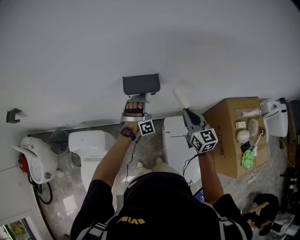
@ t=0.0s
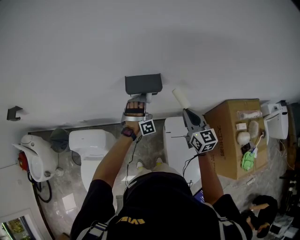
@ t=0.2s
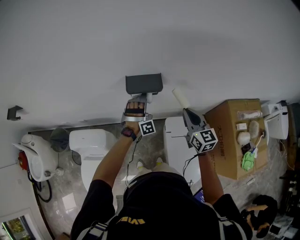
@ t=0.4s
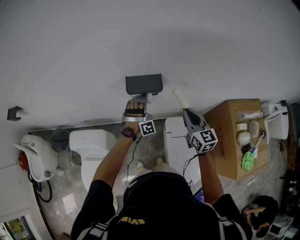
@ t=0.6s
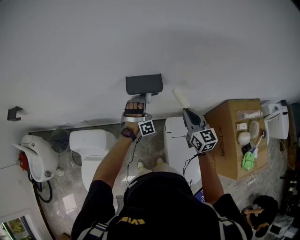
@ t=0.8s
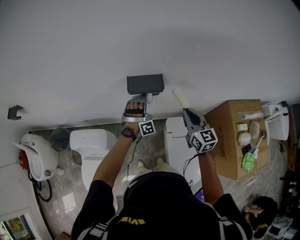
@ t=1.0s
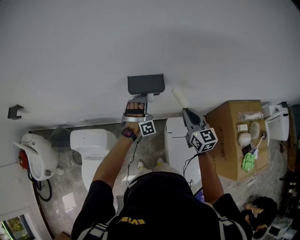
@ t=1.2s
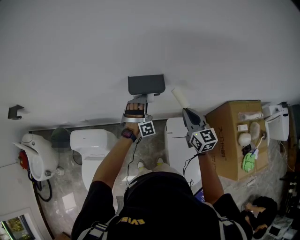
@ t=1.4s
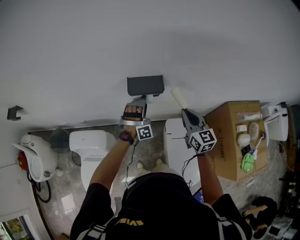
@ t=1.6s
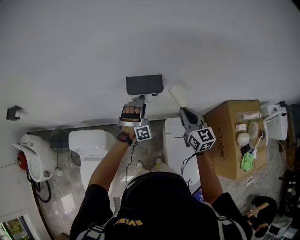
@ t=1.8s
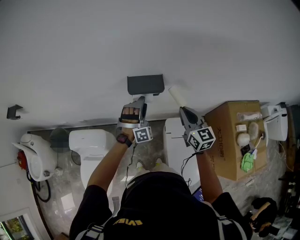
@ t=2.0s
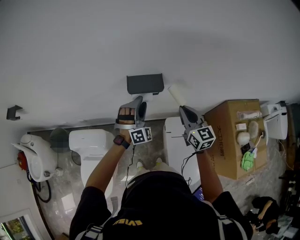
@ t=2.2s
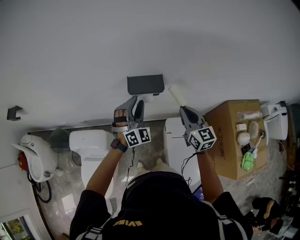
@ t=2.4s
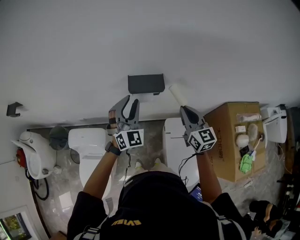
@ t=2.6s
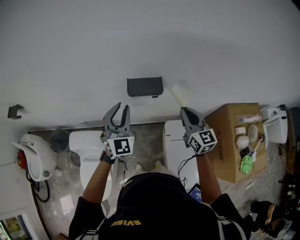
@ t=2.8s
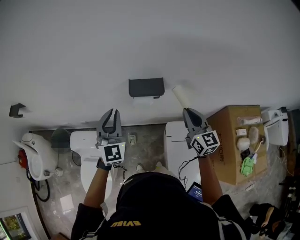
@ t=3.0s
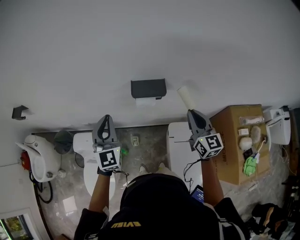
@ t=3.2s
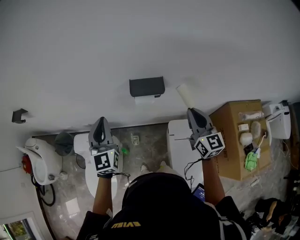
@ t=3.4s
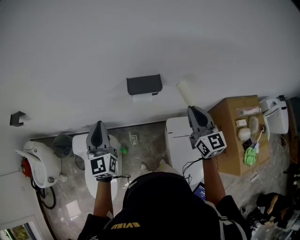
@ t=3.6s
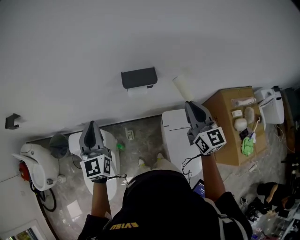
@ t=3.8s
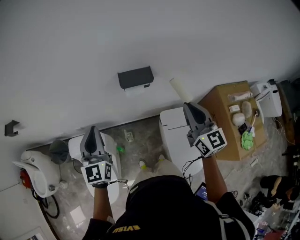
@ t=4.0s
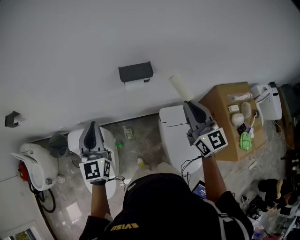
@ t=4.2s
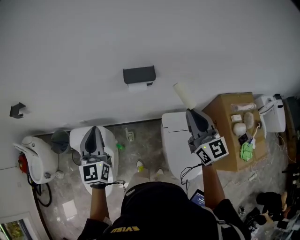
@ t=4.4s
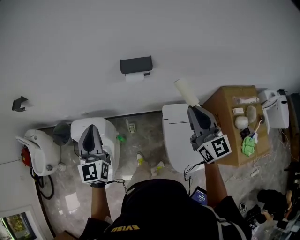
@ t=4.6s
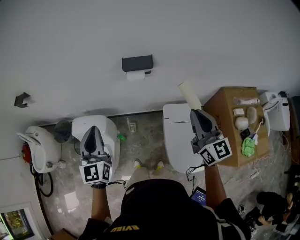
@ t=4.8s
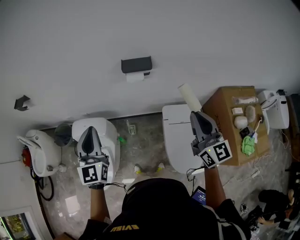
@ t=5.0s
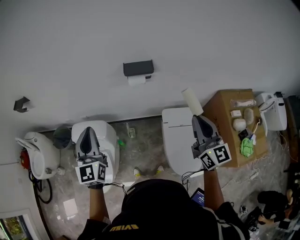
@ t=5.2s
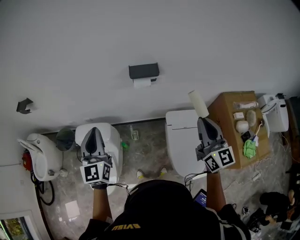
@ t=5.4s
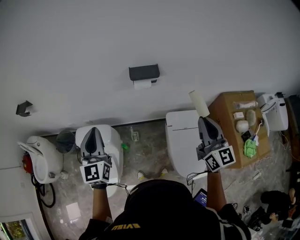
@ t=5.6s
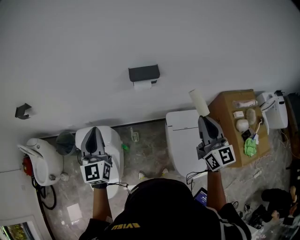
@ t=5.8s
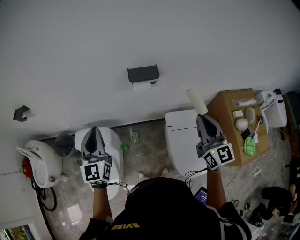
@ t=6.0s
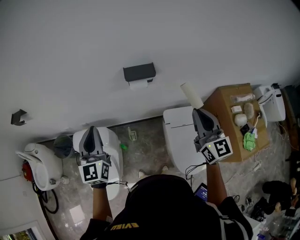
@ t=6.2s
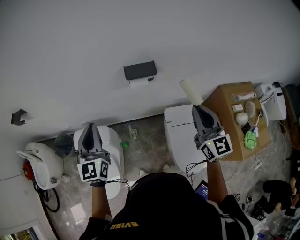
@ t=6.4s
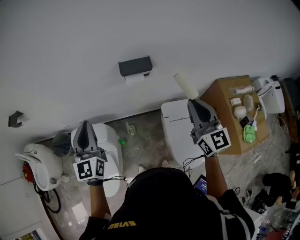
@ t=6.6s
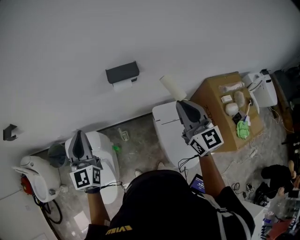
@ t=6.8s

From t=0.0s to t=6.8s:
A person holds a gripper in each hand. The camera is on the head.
From t=0.0s to t=1.4s: The grippers stay close to where they were, moving slightly.
From t=1.4s to t=2.8s: The left gripper shifts some 20 cm upward and to the left, twists about 60 degrees counterclockwise, seen from behind, and closes up.
From t=2.8s to t=4.0s: The left gripper travels to the left and backward by roughly 15 cm, and rotates roughly 30 degrees. The right gripper goes approximately 15 cm backward and upward.
From t=4.0s to t=5.4s: Both grippers travel together backward, about 10 cm.
From t=5.4s to t=6.8s: The grippers both shift forward by about 5 cm.

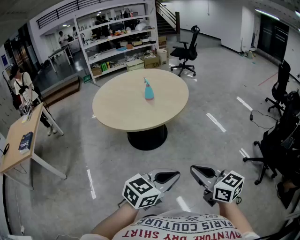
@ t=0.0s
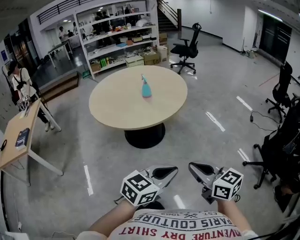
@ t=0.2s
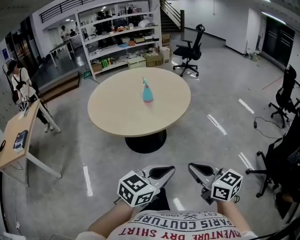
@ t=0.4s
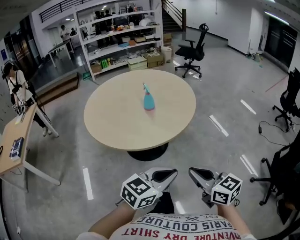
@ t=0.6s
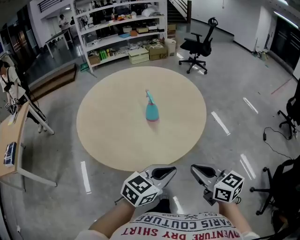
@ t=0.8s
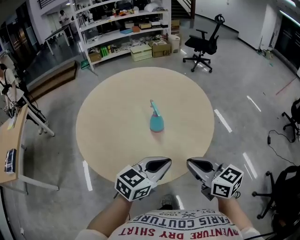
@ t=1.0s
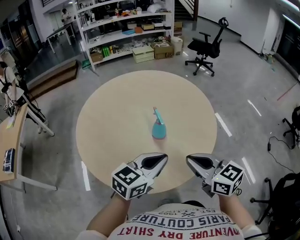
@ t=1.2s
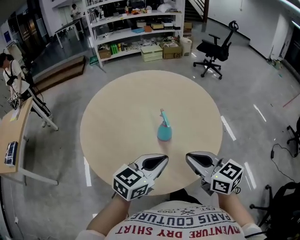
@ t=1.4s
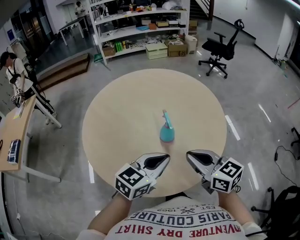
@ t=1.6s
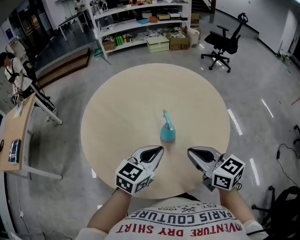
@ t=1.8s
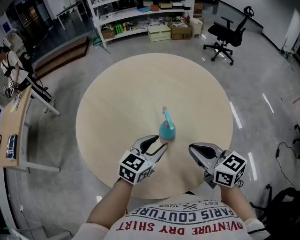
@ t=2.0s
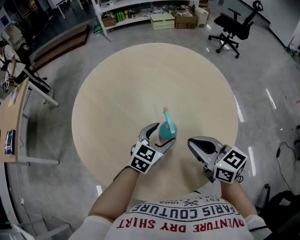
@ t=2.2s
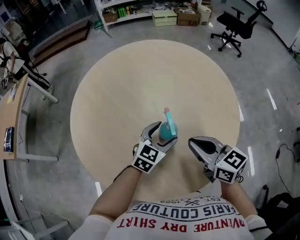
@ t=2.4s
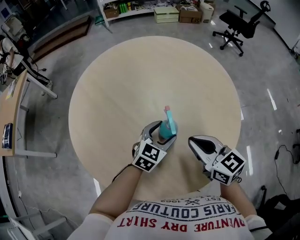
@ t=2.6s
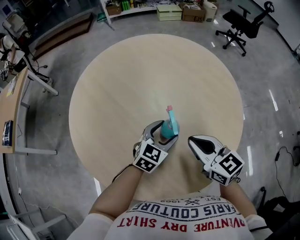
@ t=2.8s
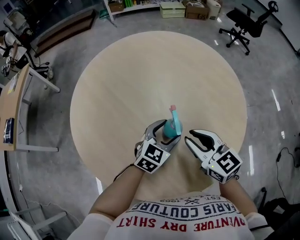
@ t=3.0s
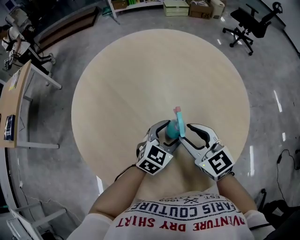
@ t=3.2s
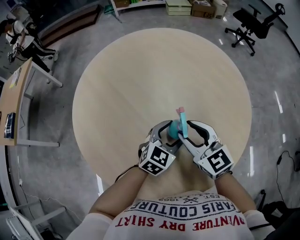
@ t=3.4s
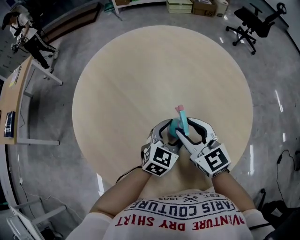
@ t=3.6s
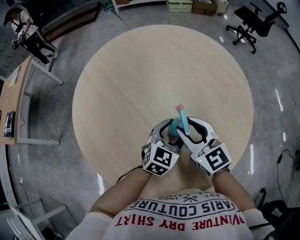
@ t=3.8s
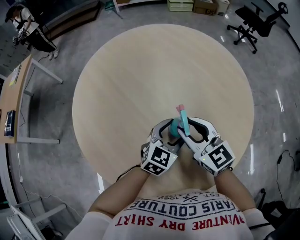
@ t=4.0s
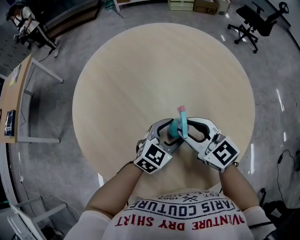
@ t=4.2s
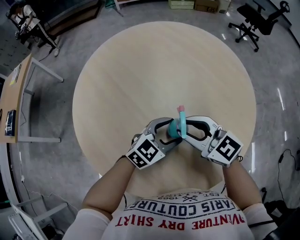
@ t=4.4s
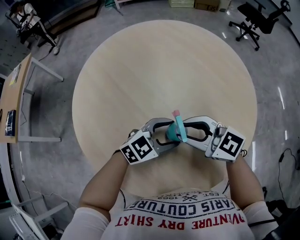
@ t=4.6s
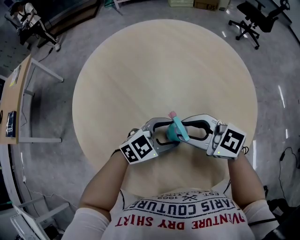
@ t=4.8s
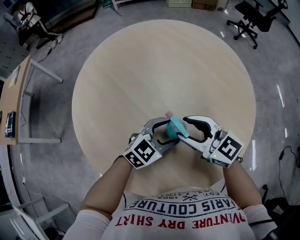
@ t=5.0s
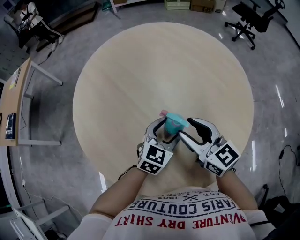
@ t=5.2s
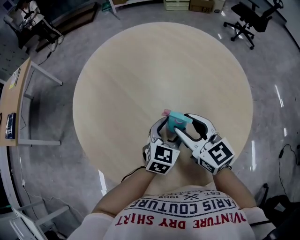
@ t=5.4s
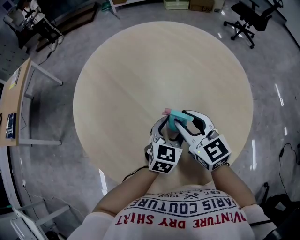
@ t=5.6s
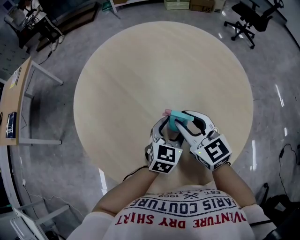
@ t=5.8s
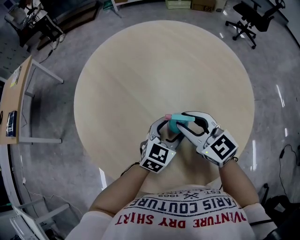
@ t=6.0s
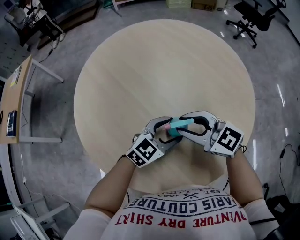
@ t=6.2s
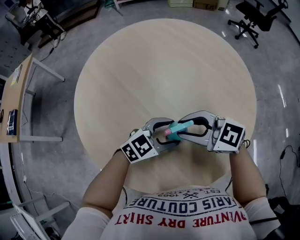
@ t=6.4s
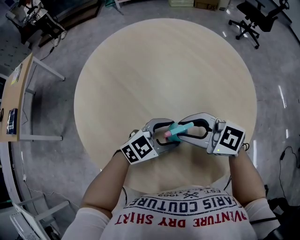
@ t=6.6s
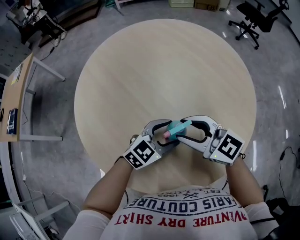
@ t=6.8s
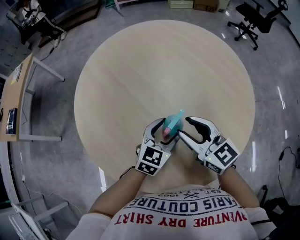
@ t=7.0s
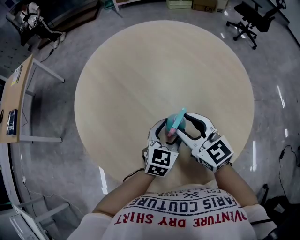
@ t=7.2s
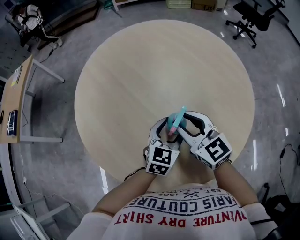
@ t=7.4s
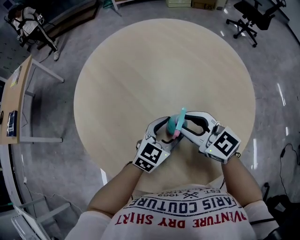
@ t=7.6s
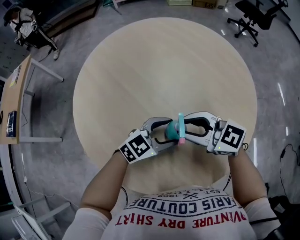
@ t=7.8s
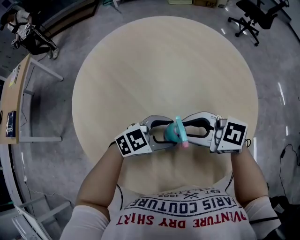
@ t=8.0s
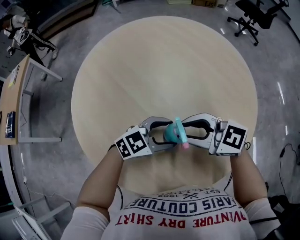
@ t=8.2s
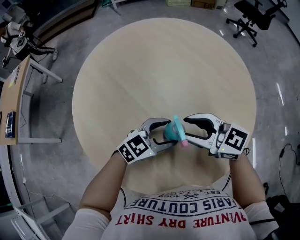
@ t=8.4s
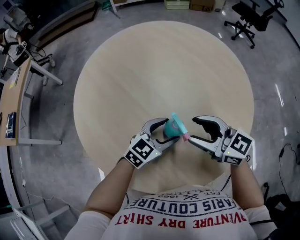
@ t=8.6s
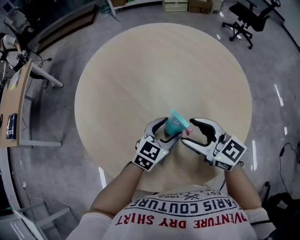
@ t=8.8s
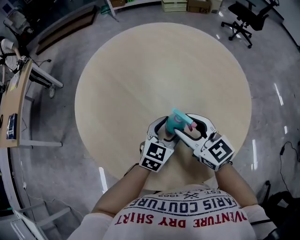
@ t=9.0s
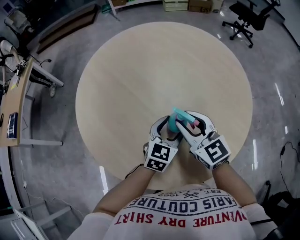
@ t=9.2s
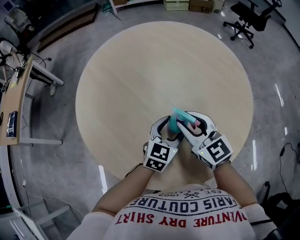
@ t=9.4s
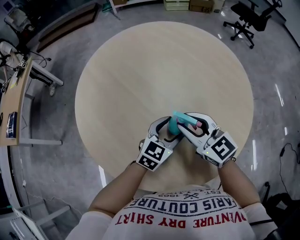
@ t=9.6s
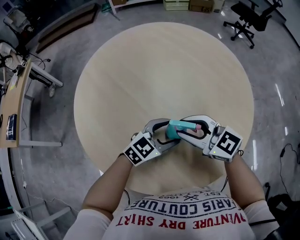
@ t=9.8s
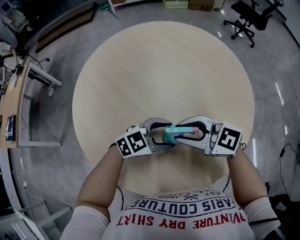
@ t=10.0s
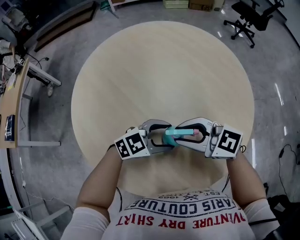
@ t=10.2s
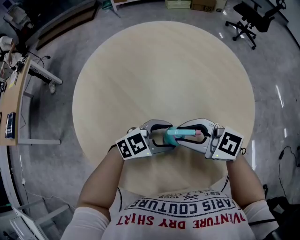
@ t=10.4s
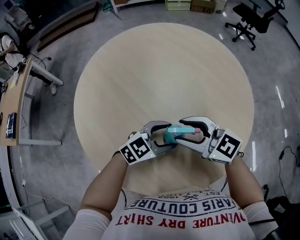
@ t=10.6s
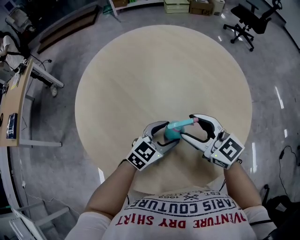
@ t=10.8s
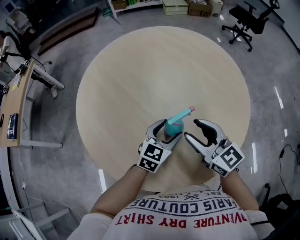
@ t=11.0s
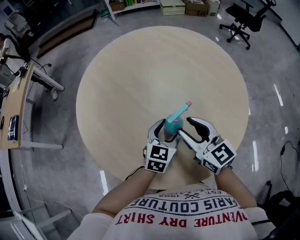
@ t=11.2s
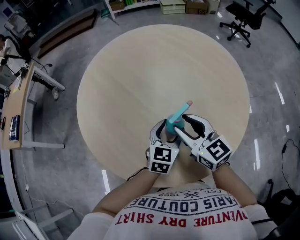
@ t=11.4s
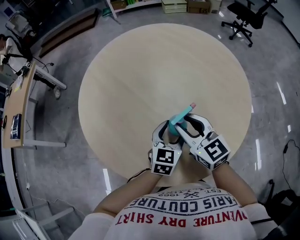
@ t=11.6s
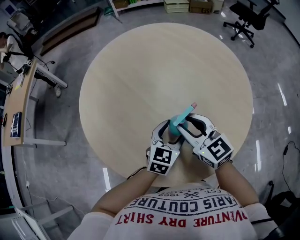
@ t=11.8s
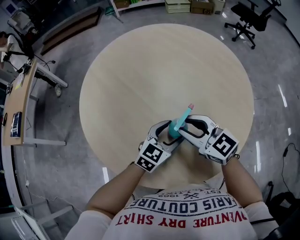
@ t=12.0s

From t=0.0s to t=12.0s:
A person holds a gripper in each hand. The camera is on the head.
From t=0.0s to t=1.6s: The two grippers travel together, forward, approximately 60 cm. The left gripper changes its angle by about 20 degrees.
From t=1.6s to t=3.0s: The two grippers go approximately 20 cm forward and downward. The left gripper changes its angle by roughly 20 degrees, and opens its fingers. Meanwhile the right gripper opens up.
From t=3.0s to t=4.4s: The right gripper moves to the left, about 5 cm, and rotates roughly 20 degrees.
From t=7.6s to t=9.0s: The right gripper opens up.
From t=9.0s to t=10.4s: The left gripper turns by some 40 degrees. Meanwhile the right gripper turns by roughly 30 degrees, and closes up.
From t=10.4s to t=12.0s: The left gripper turns by some 30 degrees; the right gripper rotates some 20 degrees, and opens, then closes once more.

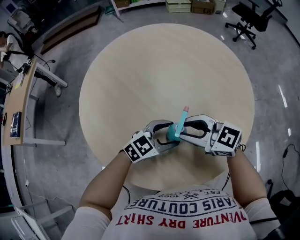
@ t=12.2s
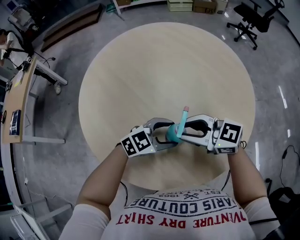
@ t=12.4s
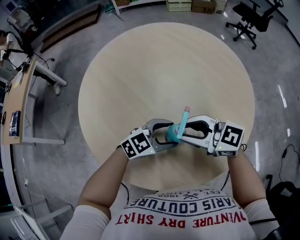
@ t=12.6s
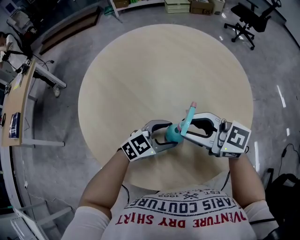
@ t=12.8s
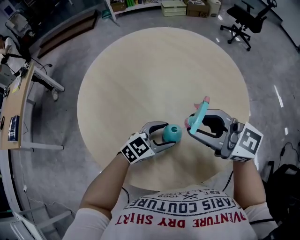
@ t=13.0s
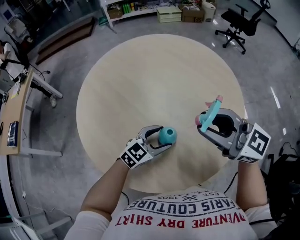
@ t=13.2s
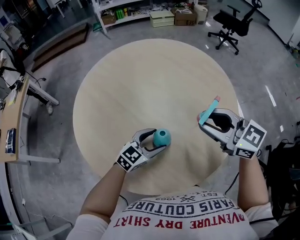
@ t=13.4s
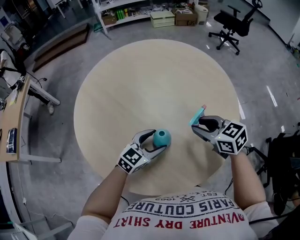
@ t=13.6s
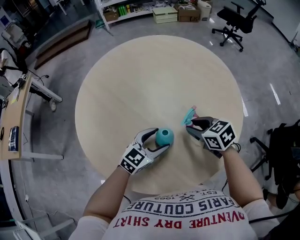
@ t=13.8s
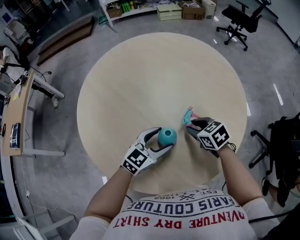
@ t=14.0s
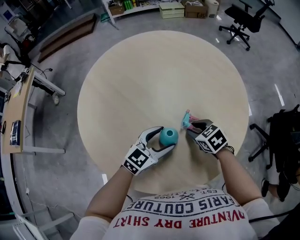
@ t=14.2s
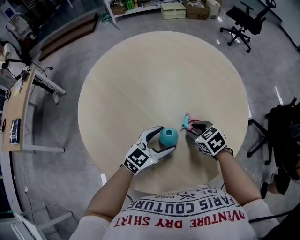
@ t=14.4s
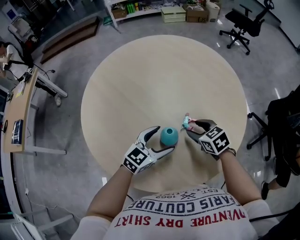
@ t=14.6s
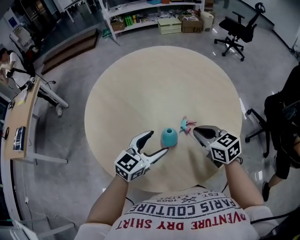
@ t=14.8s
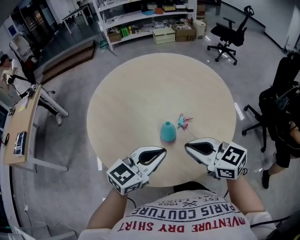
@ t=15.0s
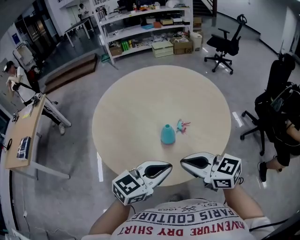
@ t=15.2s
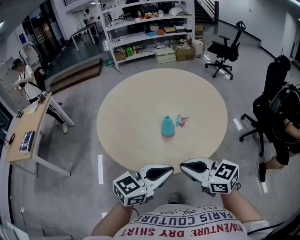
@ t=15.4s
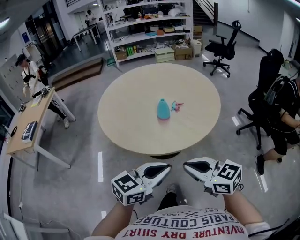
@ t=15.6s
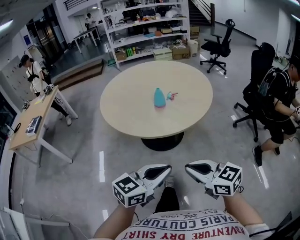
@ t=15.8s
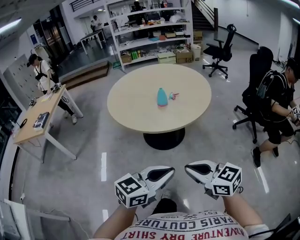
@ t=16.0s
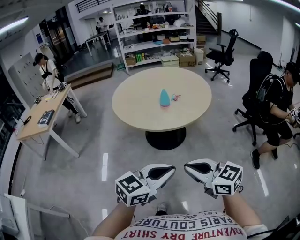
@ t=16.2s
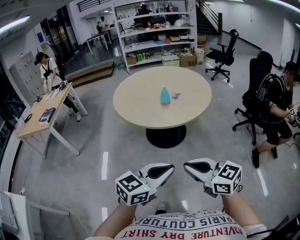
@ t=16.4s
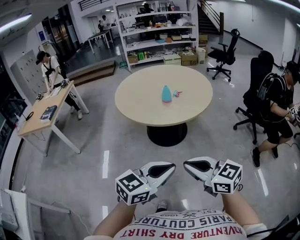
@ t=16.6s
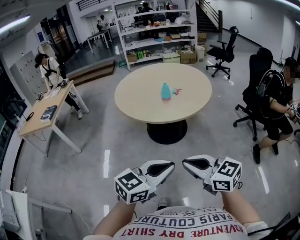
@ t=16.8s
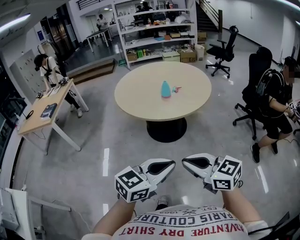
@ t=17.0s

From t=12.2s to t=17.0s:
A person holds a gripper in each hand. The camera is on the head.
From t=12.2s to t=13.8s: The right gripper moves roughly 15 cm upward and comes back, and turns by approximately 40 degrees.
From t=13.8s to t=15.4s: Both grippers move backward and upward, about 35 cm. The left gripper closes up. Meanwhile the right gripper changes its angle by approximately 30 degrees, and closes up.
From t=15.4s to t=17.0s: Both grippers are carried backward, approximately 40 cm.
